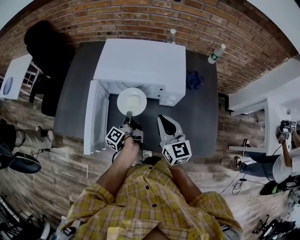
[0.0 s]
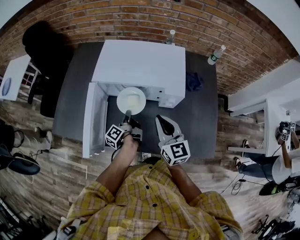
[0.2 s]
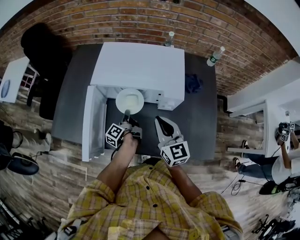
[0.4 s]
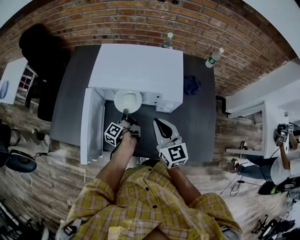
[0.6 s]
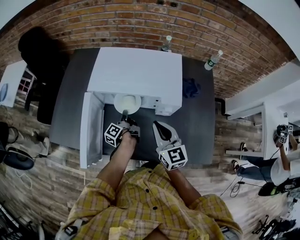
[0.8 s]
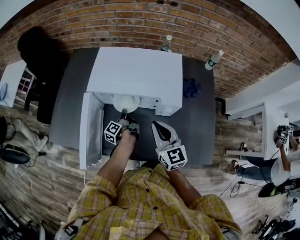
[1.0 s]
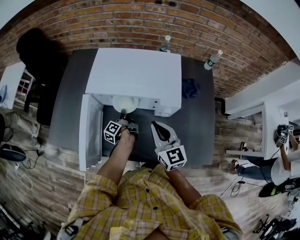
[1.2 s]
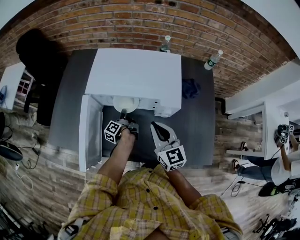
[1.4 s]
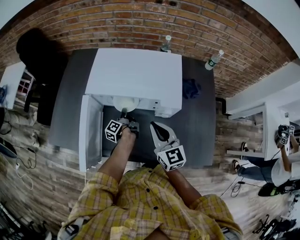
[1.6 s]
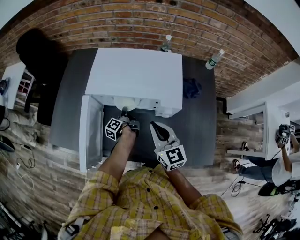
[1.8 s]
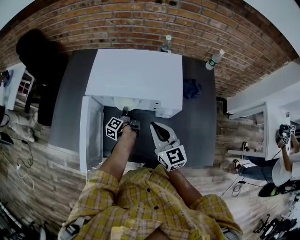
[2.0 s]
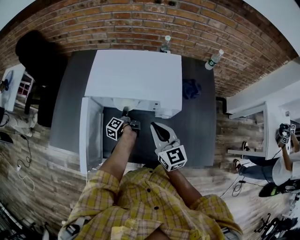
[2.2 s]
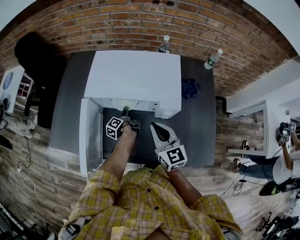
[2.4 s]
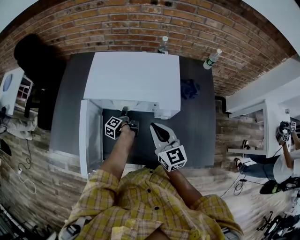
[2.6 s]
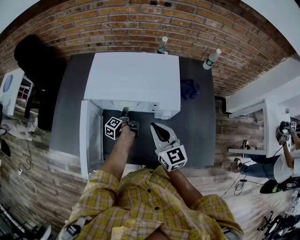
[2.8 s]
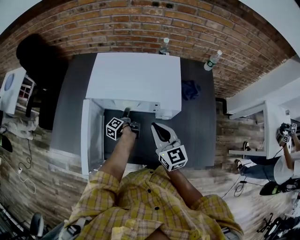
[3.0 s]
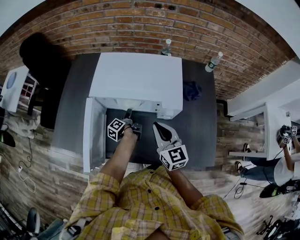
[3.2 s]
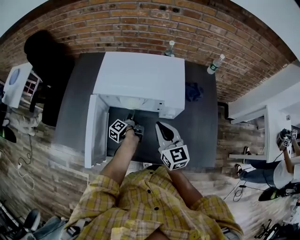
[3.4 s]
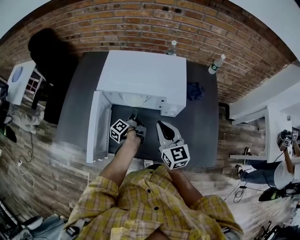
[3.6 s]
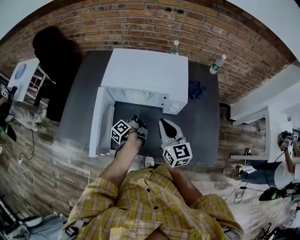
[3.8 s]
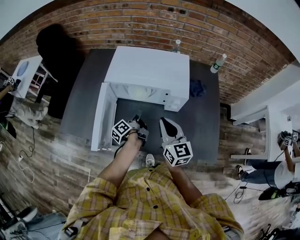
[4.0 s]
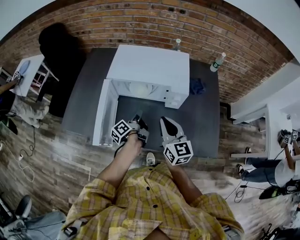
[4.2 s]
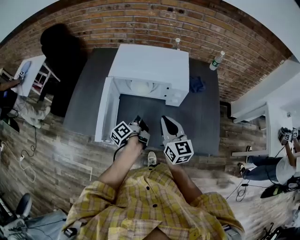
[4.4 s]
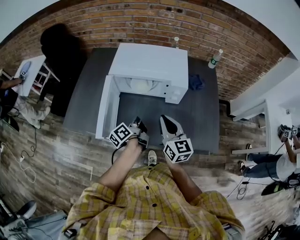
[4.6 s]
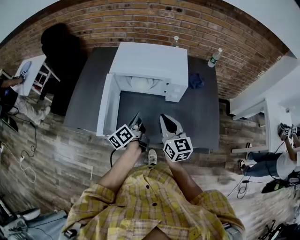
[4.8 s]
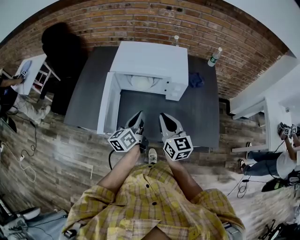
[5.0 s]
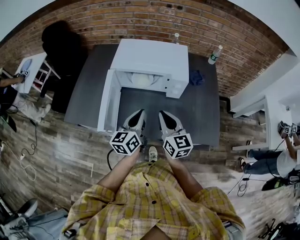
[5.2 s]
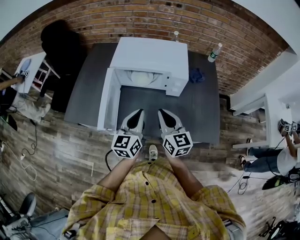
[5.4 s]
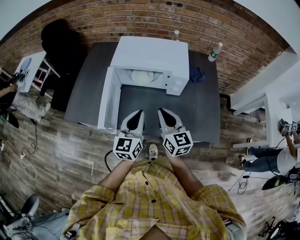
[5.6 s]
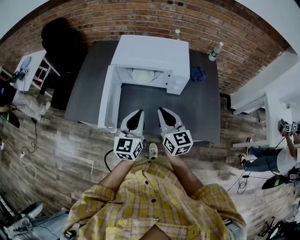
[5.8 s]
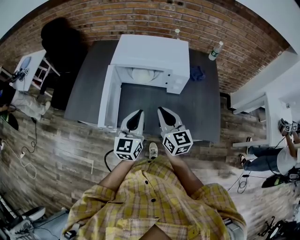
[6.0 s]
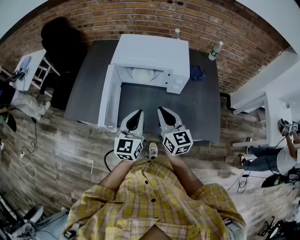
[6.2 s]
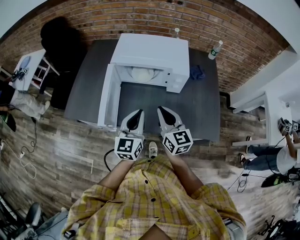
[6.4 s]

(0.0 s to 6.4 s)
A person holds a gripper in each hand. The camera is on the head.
3.2 s - 4.8 s: The right gripper ends up approximately 15 cm from where it was.

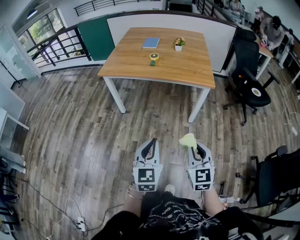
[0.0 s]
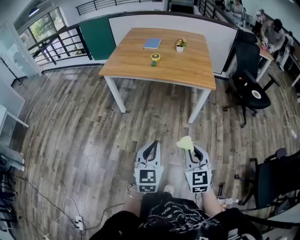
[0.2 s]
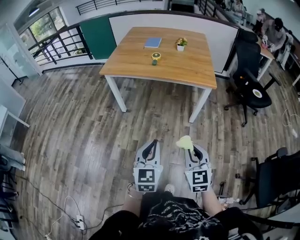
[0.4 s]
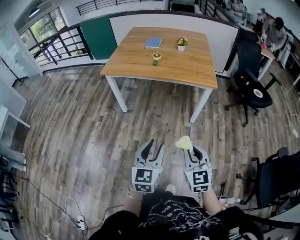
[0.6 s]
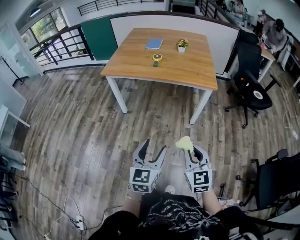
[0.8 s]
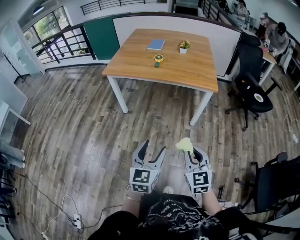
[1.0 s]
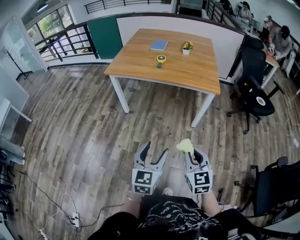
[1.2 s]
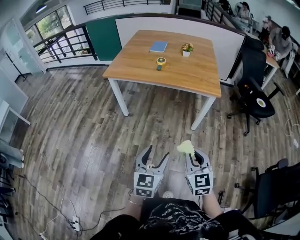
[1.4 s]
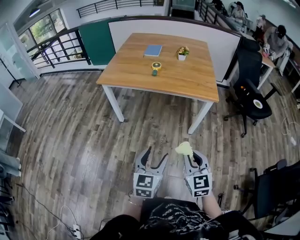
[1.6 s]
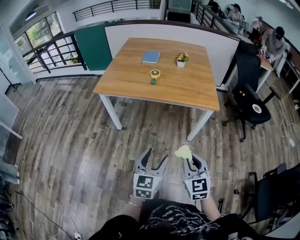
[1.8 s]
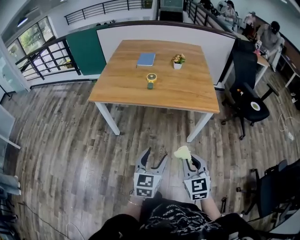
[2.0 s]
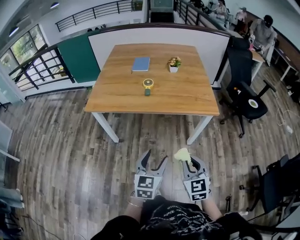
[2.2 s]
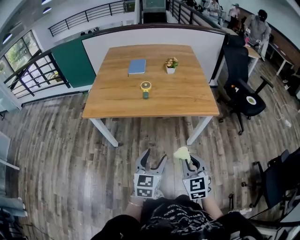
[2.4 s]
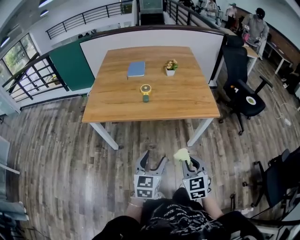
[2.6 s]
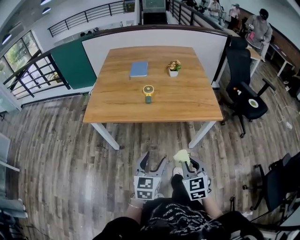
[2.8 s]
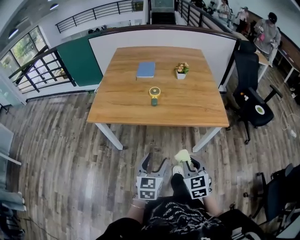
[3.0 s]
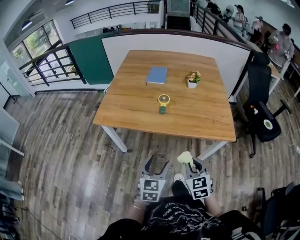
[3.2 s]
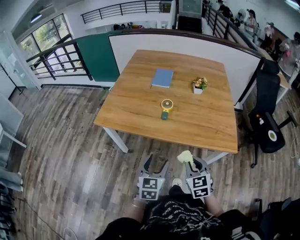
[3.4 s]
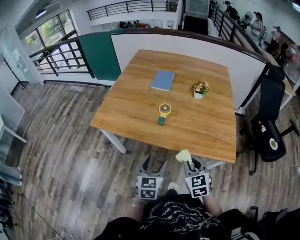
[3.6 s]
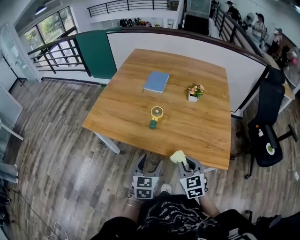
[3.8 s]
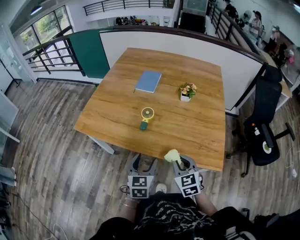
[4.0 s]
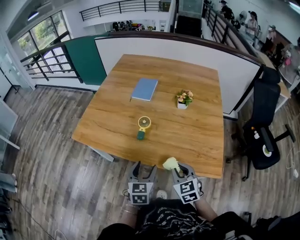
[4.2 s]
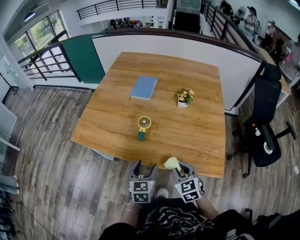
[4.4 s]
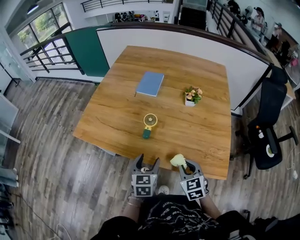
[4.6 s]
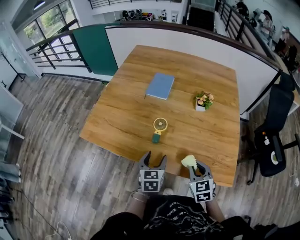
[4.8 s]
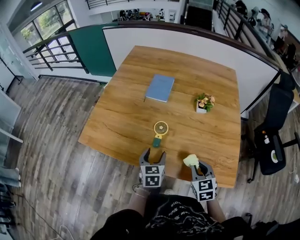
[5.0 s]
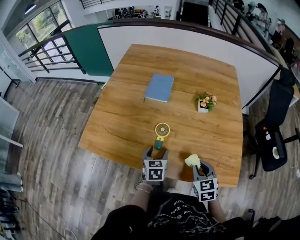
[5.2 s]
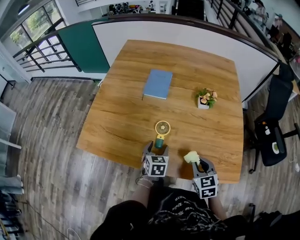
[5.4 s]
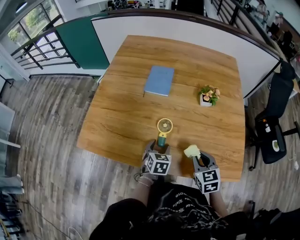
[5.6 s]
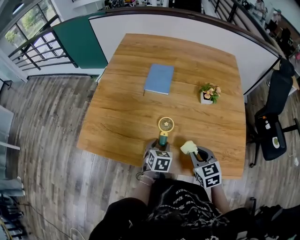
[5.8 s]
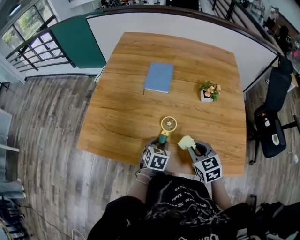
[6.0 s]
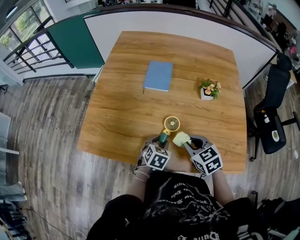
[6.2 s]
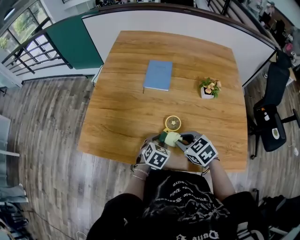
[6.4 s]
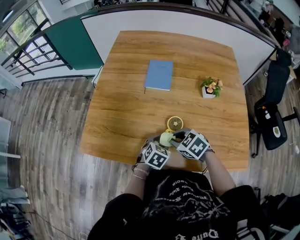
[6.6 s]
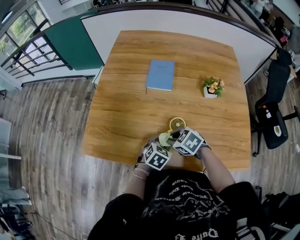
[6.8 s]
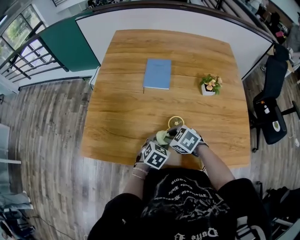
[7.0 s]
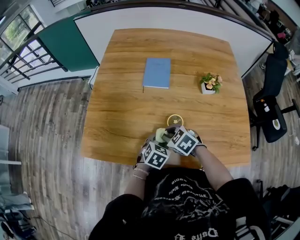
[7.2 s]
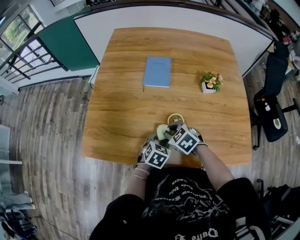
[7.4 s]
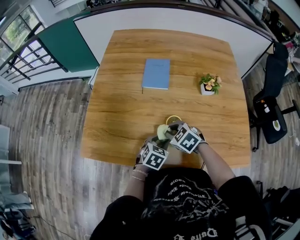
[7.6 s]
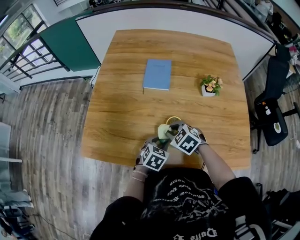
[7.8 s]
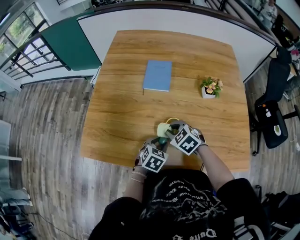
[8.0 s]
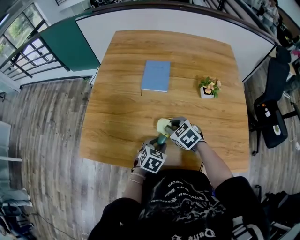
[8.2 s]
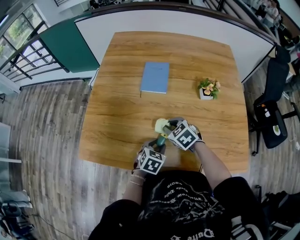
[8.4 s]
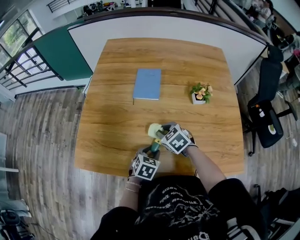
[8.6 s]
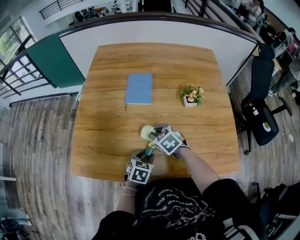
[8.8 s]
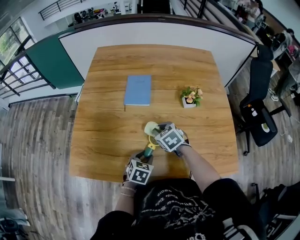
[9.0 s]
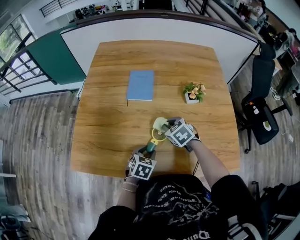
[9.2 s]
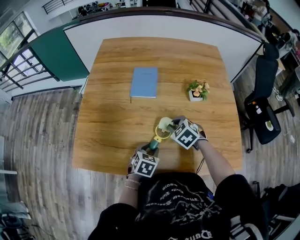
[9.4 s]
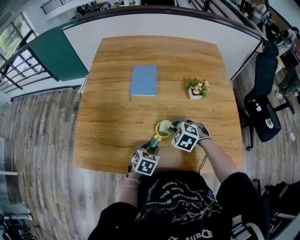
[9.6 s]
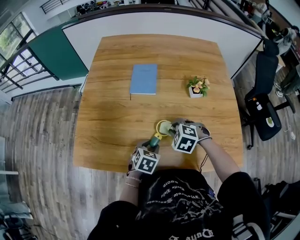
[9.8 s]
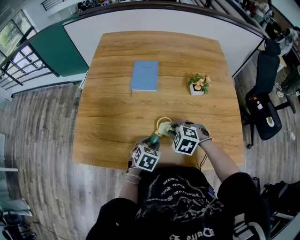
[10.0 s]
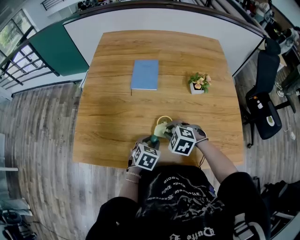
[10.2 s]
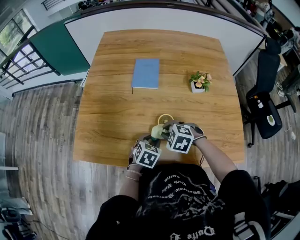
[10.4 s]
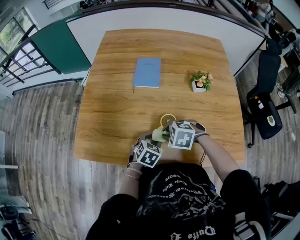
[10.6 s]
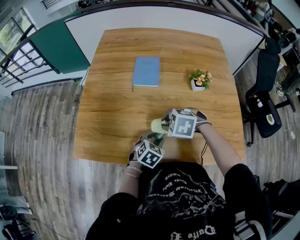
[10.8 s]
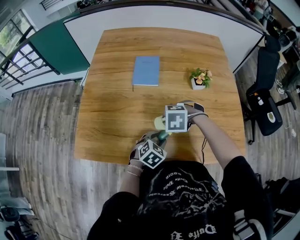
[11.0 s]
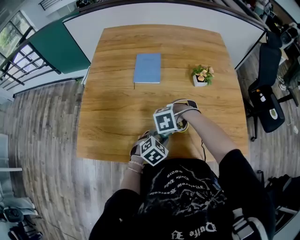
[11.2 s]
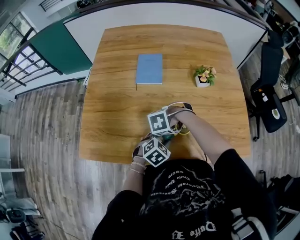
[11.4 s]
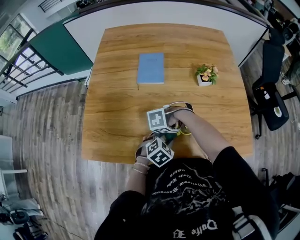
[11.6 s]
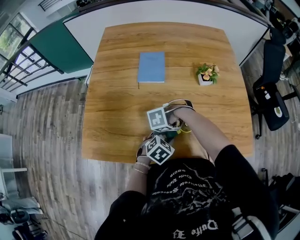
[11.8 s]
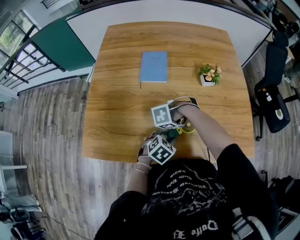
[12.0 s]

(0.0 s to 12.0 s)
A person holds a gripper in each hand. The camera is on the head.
0.0 s - 1.6 s: The grippers both shift forward by about 10 cm. The left gripper opens its fingers.
1.6 s - 3.0 s: The grippers both shift forward and to the left by some 30 cm.
3.0 s - 4.4 s: The grippers both shift forward and to the right by approximately 30 cm.
4.4 s - 6.0 s: The left gripper is displaced forward and downward by about 20 cm, rotates approximately 30 degrees, and closes; the right gripper is displaced forward and to the left by approximately 15 cm.
6.0 s - 7.6 s: The right gripper goes approximately 15 cm to the left, forward and downward, and rotates approximately 30 degrees.
7.6 s - 9.0 s: The right gripper moves forward and to the right, roughly 10 cm.
9.0 s - 10.4 s: The right gripper travels backward by approximately 10 cm, and turns by about 40 degrees.
10.4 s - 12.0 s: The right gripper shifts by about 5 cm, and changes its angle by about 40 degrees.

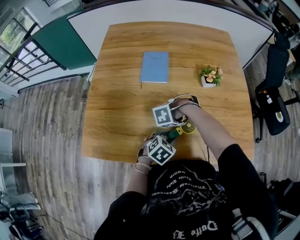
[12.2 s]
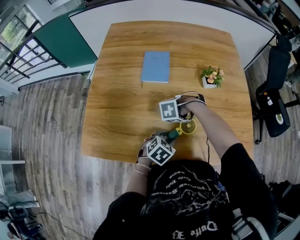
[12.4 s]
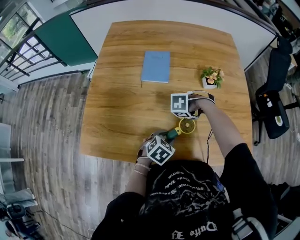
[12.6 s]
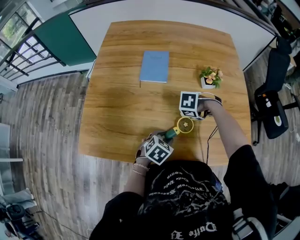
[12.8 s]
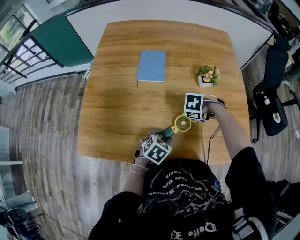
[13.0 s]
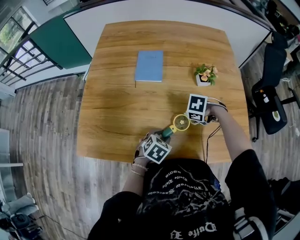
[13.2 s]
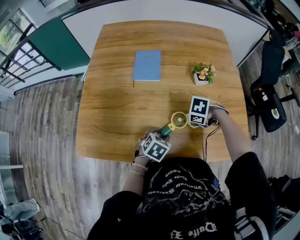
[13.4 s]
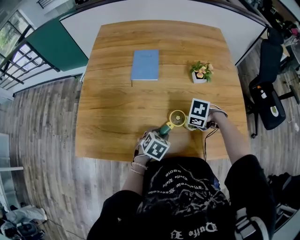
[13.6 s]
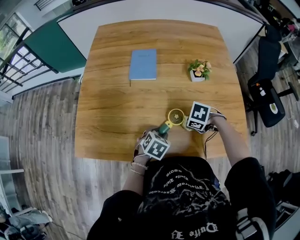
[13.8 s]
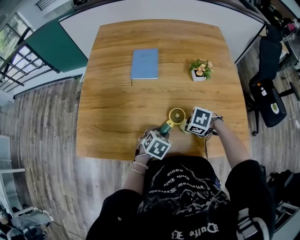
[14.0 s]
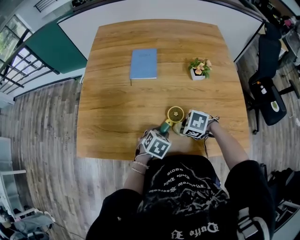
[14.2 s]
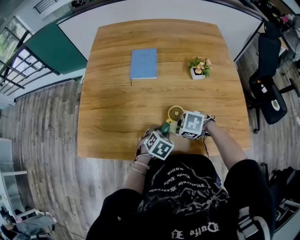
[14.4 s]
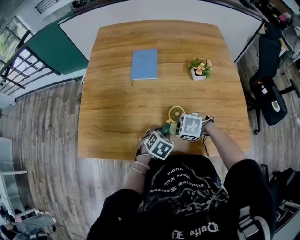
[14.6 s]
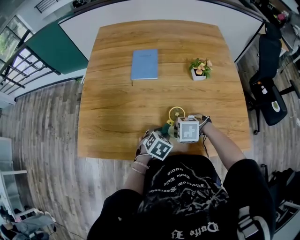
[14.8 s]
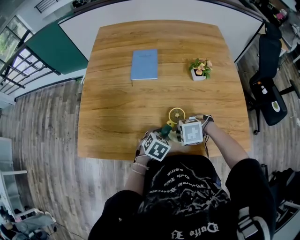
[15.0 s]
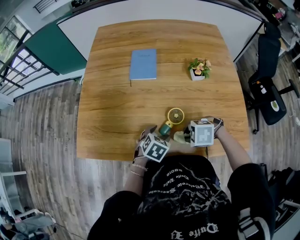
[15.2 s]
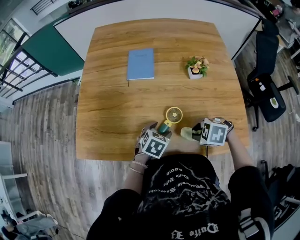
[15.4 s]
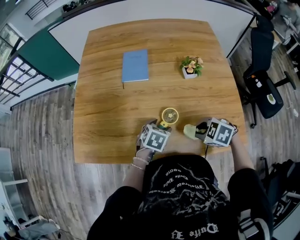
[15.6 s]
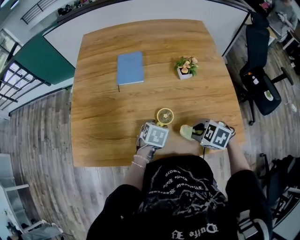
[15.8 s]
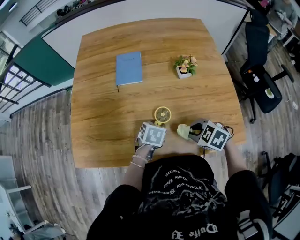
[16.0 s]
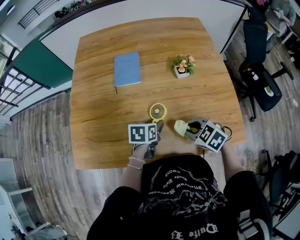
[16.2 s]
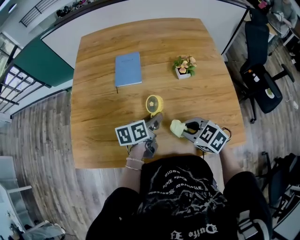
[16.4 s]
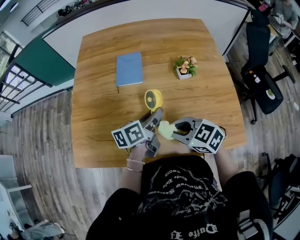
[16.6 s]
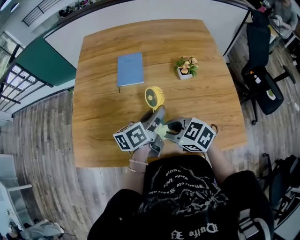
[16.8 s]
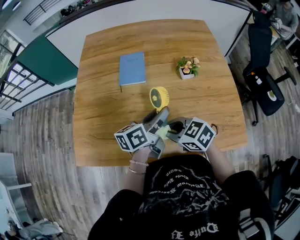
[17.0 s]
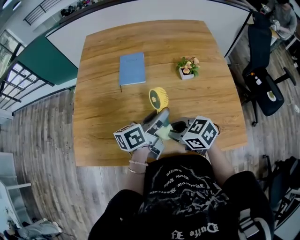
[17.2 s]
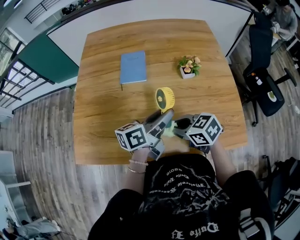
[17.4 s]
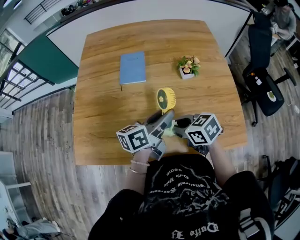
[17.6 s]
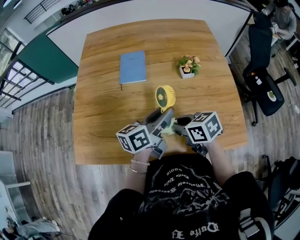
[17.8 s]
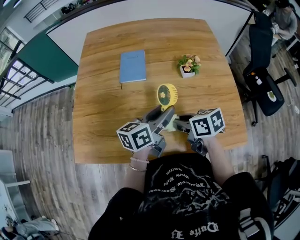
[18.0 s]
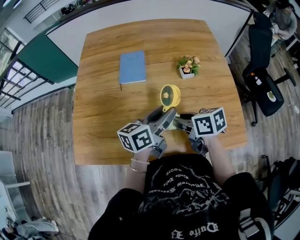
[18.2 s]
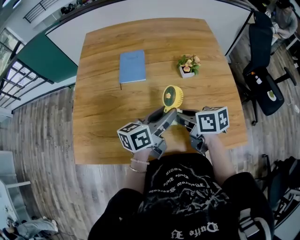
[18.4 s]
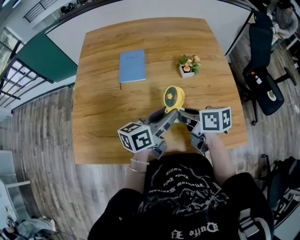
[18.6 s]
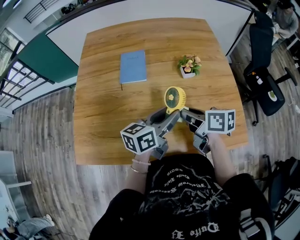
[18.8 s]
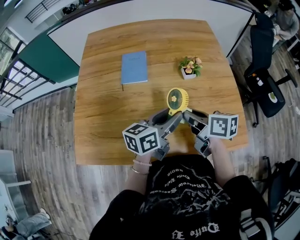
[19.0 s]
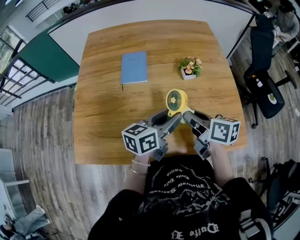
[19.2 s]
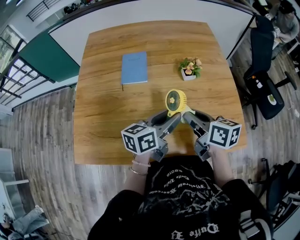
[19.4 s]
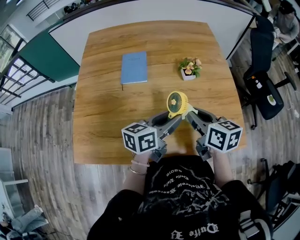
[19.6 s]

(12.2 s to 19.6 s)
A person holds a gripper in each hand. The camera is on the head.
12.2 s - 13.6 s: The right gripper shifts by approximately 10 cm, and swivels roughly 40 degrees.
13.6 s - 15.2 s: The right gripper ends up roughly 10 cm from where it was, and changes its angle by about 20 degrees. Meanwhile the left gripper opens.
15.2 s - 16.6 s: The two grippers go about 10 cm upward. The right gripper angles its fingers upward, by some 40 degrees; the left gripper tilts its fingers about 40 degrees upward.
16.6 s - 18.2 s: The left gripper moves upward, approximately 5 cm. The right gripper turns by about 40 degrees.
18.2 s - 19.6 s: The right gripper is displaced to the right and upward by approximately 10 cm, and rotates roughly 30 degrees.
